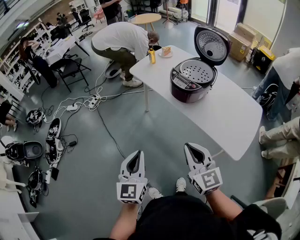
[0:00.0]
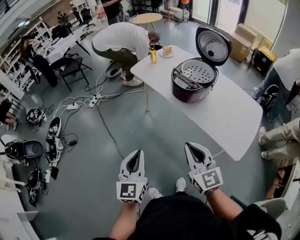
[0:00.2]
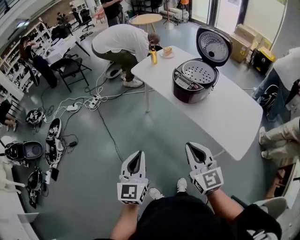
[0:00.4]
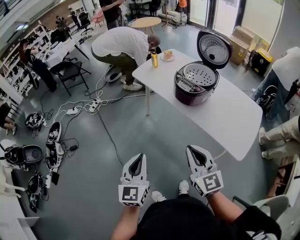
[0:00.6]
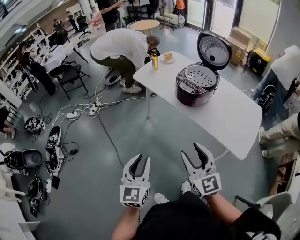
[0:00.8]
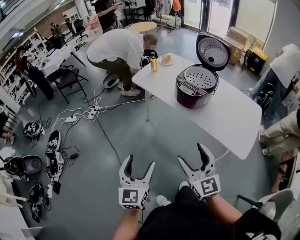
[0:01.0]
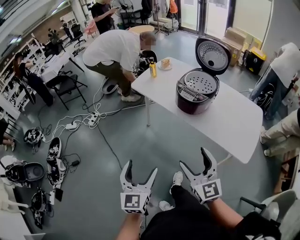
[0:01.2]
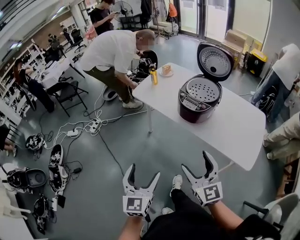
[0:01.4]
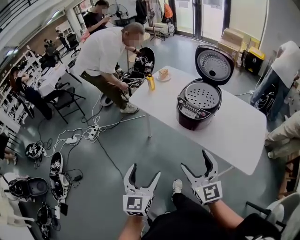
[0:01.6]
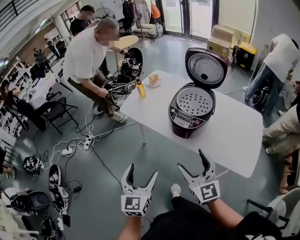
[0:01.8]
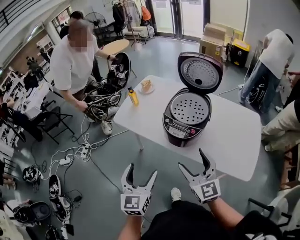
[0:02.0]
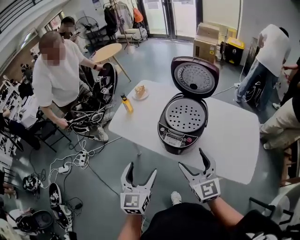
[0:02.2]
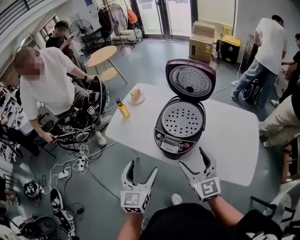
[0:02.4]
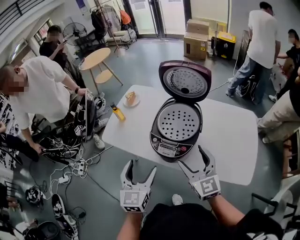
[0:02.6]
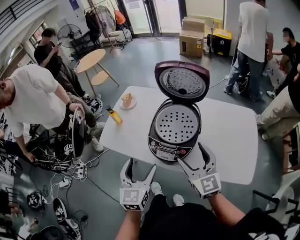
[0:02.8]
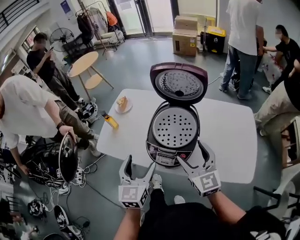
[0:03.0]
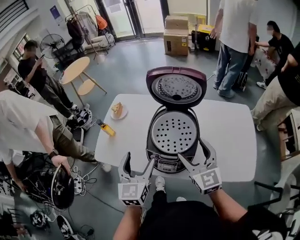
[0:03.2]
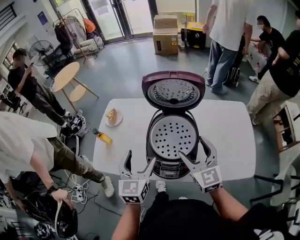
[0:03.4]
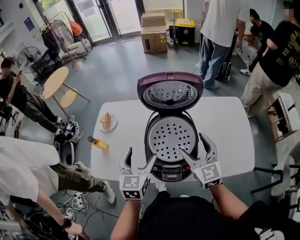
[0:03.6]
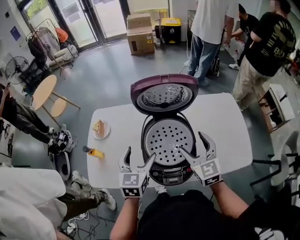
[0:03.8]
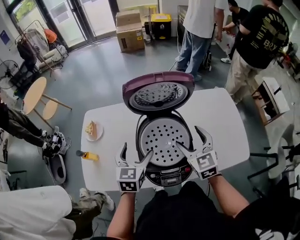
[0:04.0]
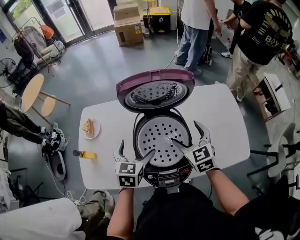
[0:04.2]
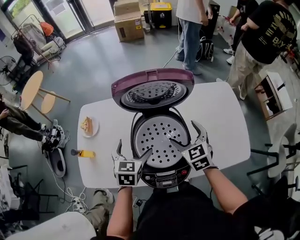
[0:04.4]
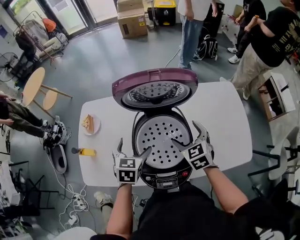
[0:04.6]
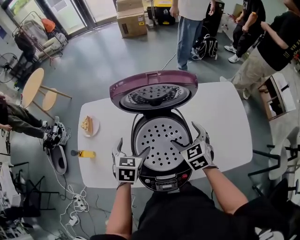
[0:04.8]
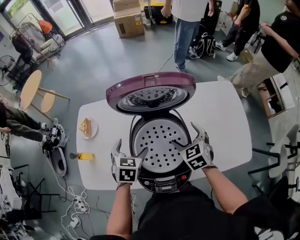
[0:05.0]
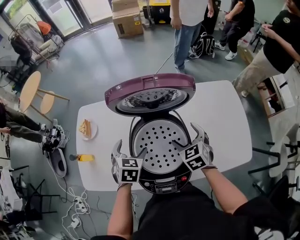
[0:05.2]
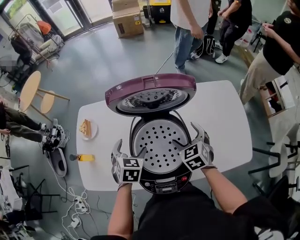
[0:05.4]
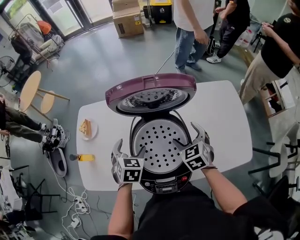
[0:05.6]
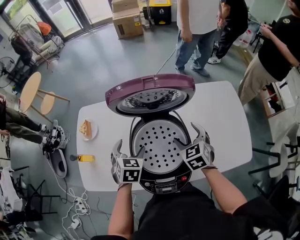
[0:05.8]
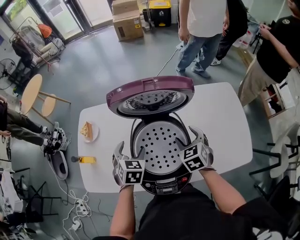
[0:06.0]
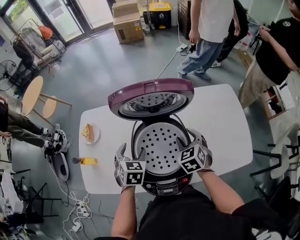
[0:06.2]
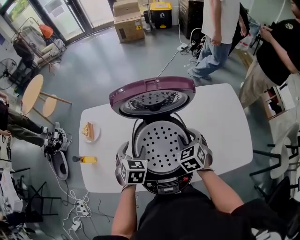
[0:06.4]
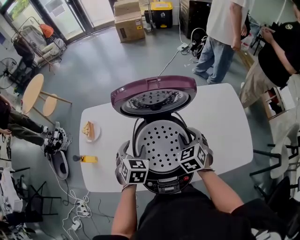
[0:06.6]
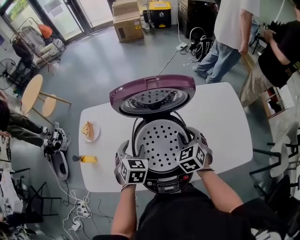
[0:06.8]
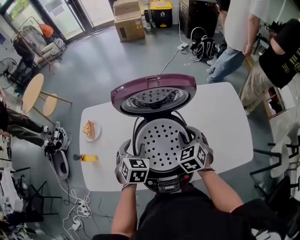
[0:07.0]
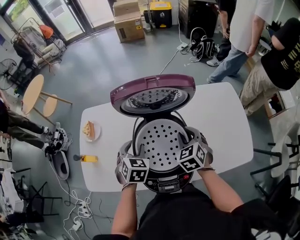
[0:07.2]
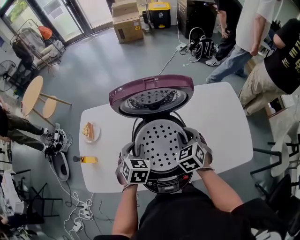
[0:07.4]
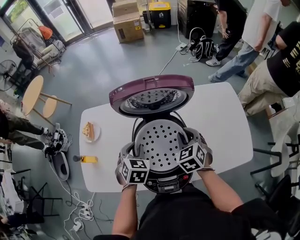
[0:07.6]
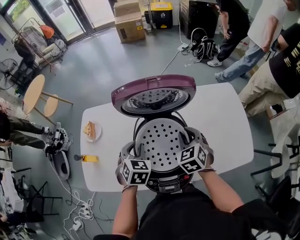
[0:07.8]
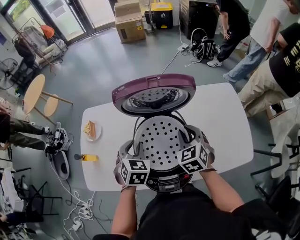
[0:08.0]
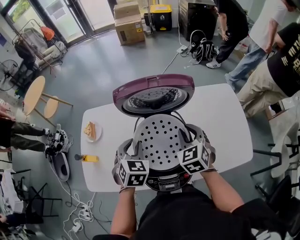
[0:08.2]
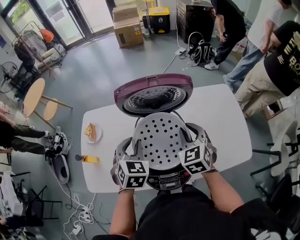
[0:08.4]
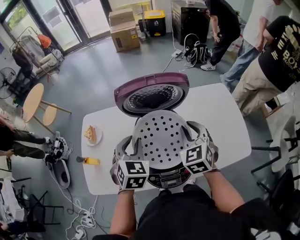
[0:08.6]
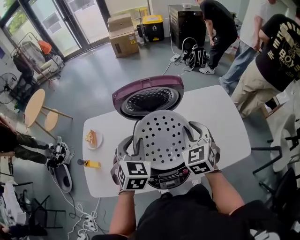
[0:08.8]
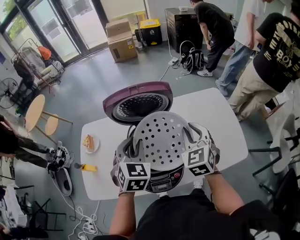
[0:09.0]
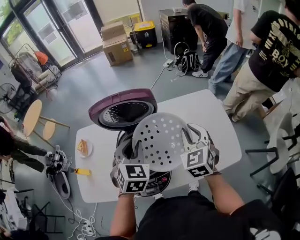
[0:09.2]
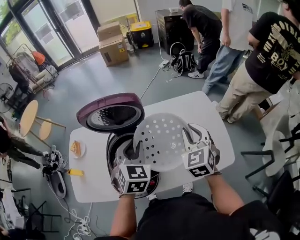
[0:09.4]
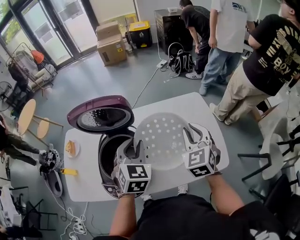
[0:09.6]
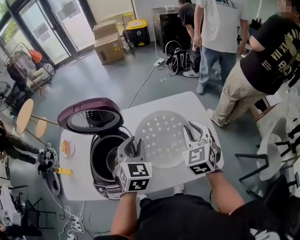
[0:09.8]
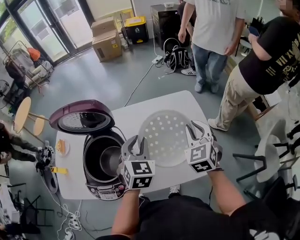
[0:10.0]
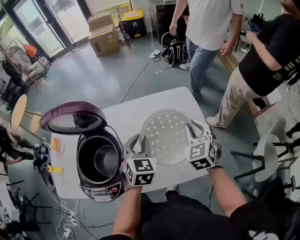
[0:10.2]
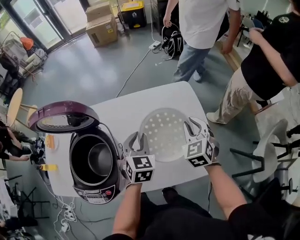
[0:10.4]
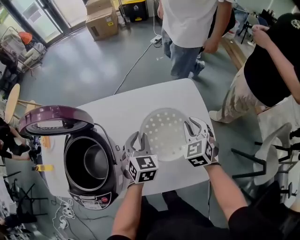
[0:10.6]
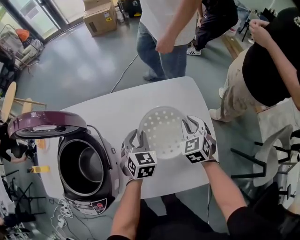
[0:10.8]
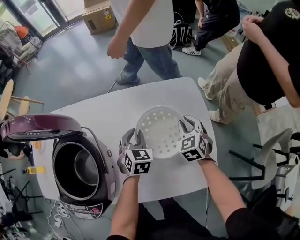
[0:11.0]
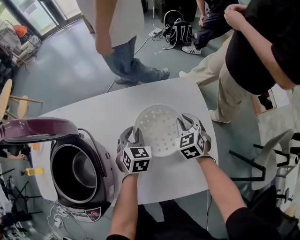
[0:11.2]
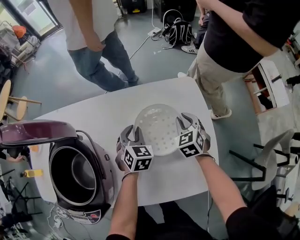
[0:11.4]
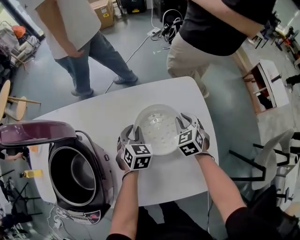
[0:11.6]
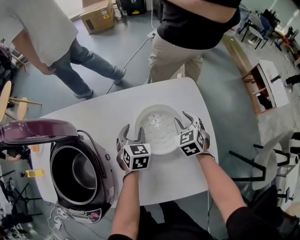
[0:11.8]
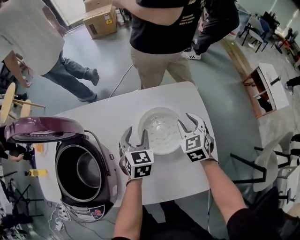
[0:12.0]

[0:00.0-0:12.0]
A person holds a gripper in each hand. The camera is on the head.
0:00.0 to 0:01.6: The two grippers go approximately 15 cm forward. The right gripper opens up, while the left gripper opens.
0:01.6 to 0:03.0: The grippers both shift forward by roughly 30 cm.
0:03.0 to 0:04.4: The right gripper changes place by approximately 20 cm, and rotates some 30 degrees. Meanwhile the left gripper changes place by some 25 cm, and turns by about 30 degrees.
0:04.4 to 0:06.0: The grippers make only small movements.
0:06.0 to 0:07.6: The right gripper closes, while the left gripper closes its fingers.
0:07.6 to 0:09.0: The two grippers go some 15 cm upward and to the right.
0:09.0 to 0:10.4: The grippers both shift to the right and downward by about 35 cm.
0:10.4 to 0:12.0: The two grippers go roughly 15 cm downward and forward.

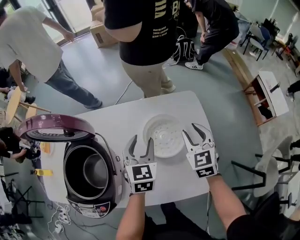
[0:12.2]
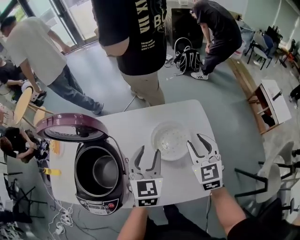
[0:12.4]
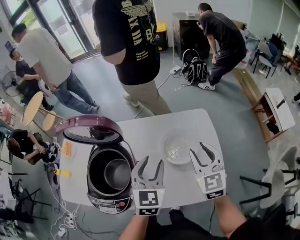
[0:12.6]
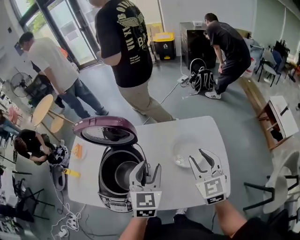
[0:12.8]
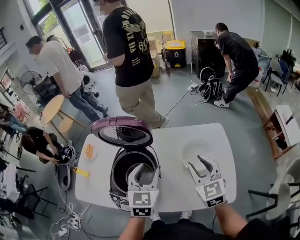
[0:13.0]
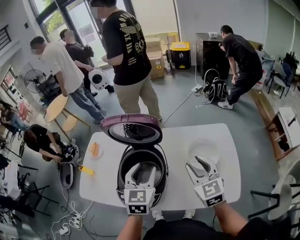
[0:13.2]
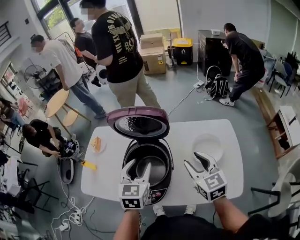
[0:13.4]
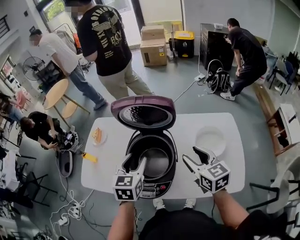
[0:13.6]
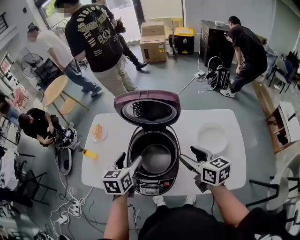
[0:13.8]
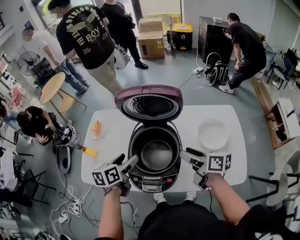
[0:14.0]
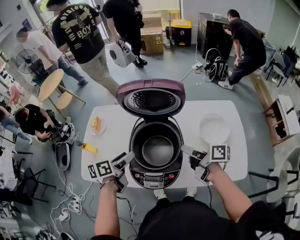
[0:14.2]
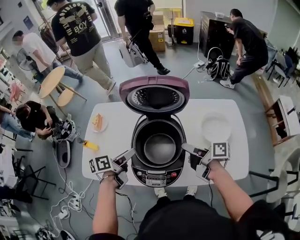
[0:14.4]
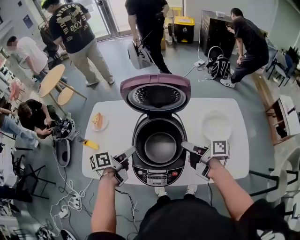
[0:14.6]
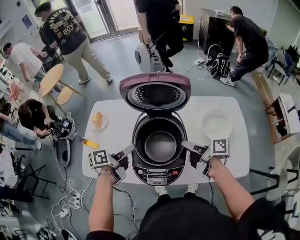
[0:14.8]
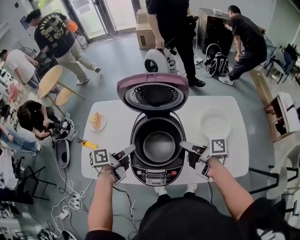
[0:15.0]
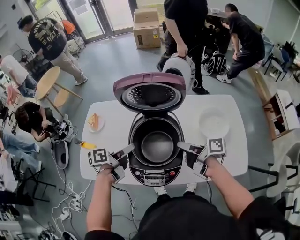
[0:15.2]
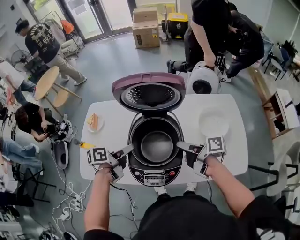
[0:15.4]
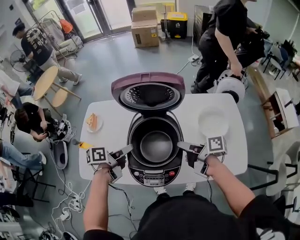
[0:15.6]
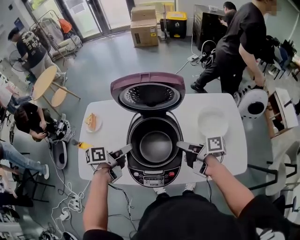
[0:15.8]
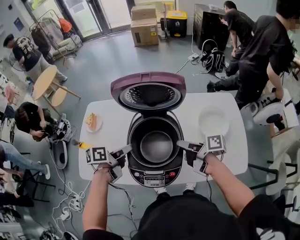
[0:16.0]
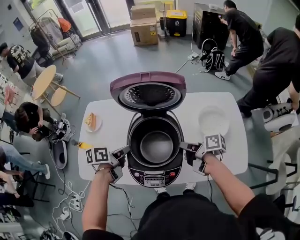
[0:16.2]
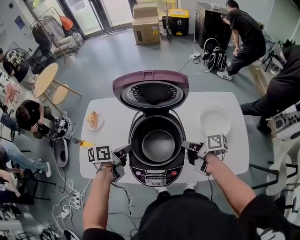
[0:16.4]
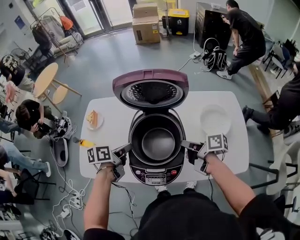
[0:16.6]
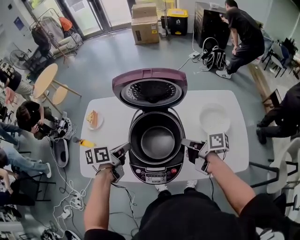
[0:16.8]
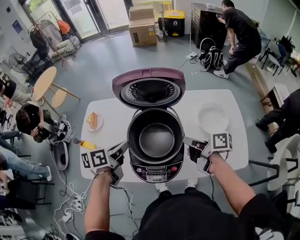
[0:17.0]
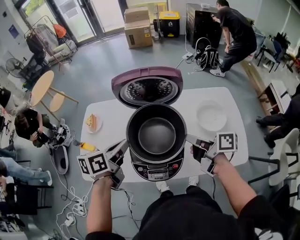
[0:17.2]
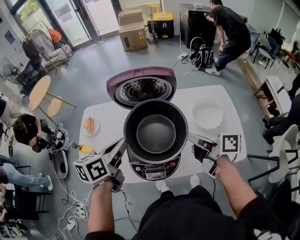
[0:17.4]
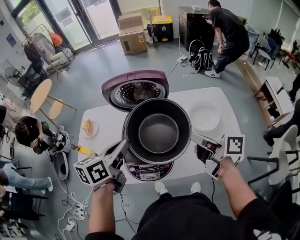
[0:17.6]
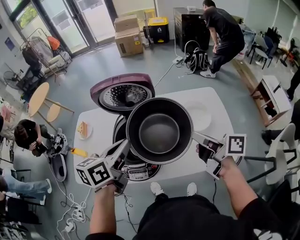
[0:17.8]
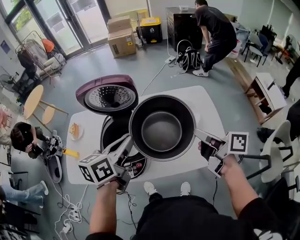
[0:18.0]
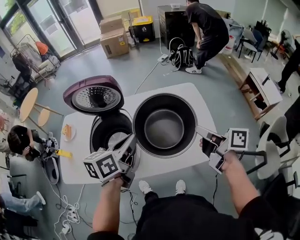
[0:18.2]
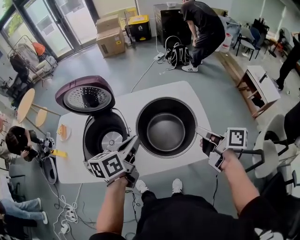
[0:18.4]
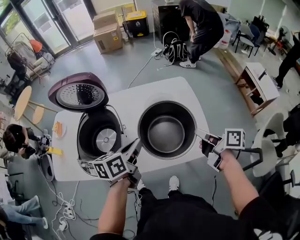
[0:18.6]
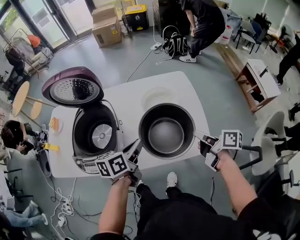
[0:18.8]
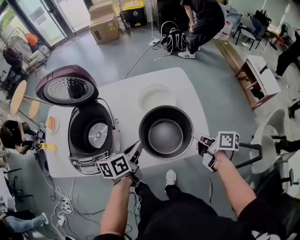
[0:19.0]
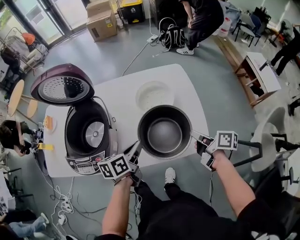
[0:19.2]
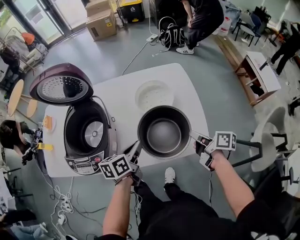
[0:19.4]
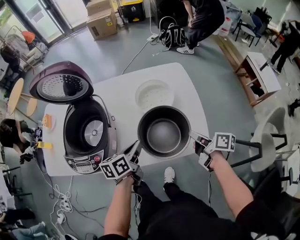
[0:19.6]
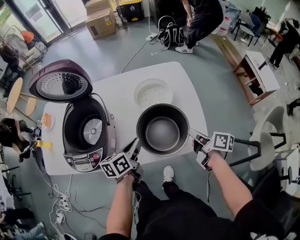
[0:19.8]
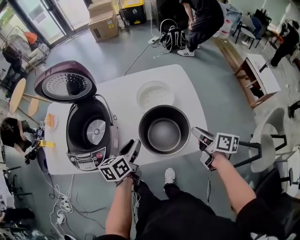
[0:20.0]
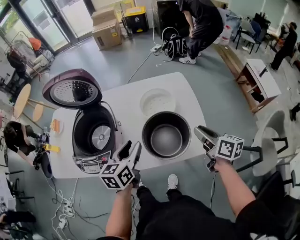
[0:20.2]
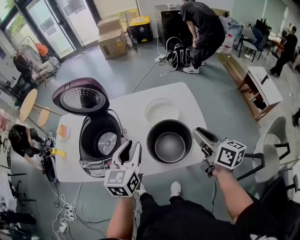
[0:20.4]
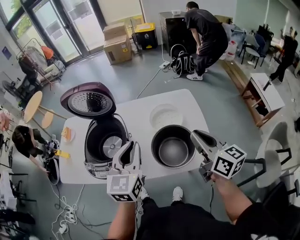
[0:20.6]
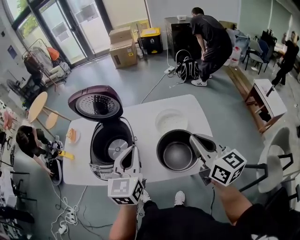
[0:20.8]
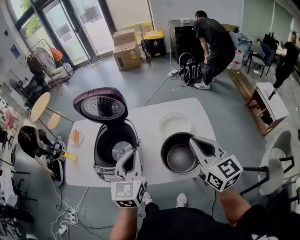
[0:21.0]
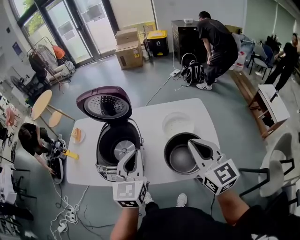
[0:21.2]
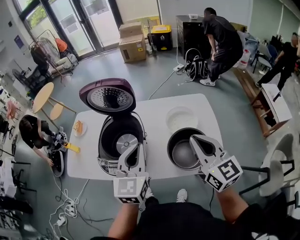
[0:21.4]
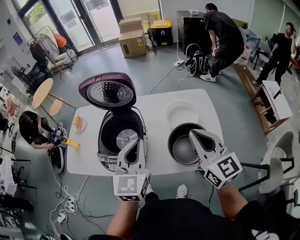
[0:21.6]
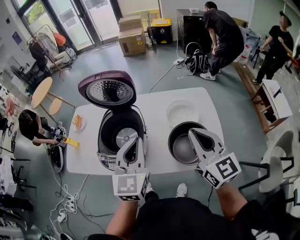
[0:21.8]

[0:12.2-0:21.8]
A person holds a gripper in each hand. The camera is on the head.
0:12.2 to 0:13.8: Both grippers travel together to the left, roughly 35 cm. The right gripper swivels about 40 degrees; the left gripper swivels about 20 degrees.
0:13.8 to 0:15.4: Both grippers travel together downward, about 5 cm. The left gripper changes its angle by some 50 degrees; the right gripper rotates around the line of its fingers by approximately 50 degrees, clockwise from behind.
0:15.4 to 0:17.0: The left gripper ends up approximately 5 cm from where it was; the right gripper closes its fingers.
0:17.0 to 0:18.6: Both grippers move to the right, some 35 cm.
0:18.6 to 0:20.2: The right gripper reaches some 15 cm downward, then returns, and turns by about 20 degrees; the left gripper goes downward and returns, roughly 15 cm each way.
0:20.2 to 0:21.8: Both grippers travel together upward and to the left, about 20 cm. The left gripper changes its angle by about 30 degrees; the right gripper rotates around the line of its fingers by approximately 40 degrees, counterclockwise from behind.

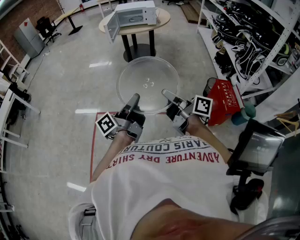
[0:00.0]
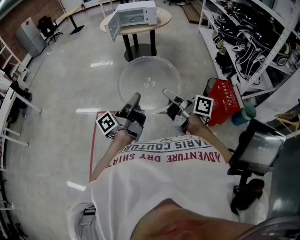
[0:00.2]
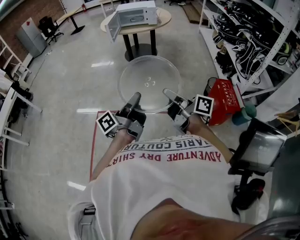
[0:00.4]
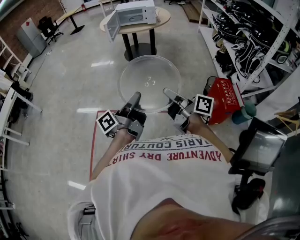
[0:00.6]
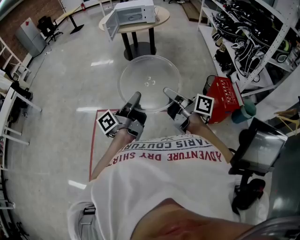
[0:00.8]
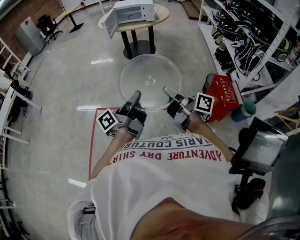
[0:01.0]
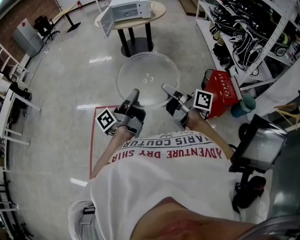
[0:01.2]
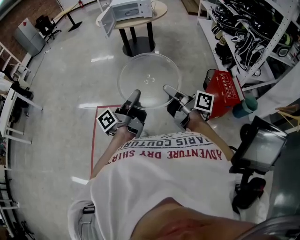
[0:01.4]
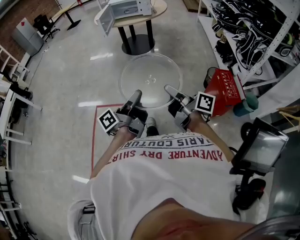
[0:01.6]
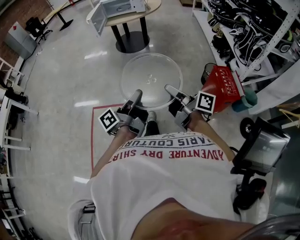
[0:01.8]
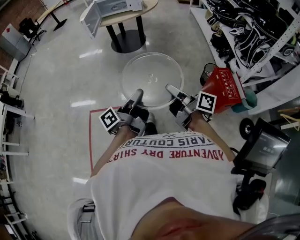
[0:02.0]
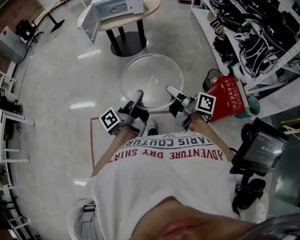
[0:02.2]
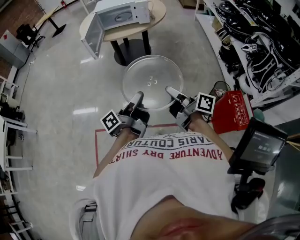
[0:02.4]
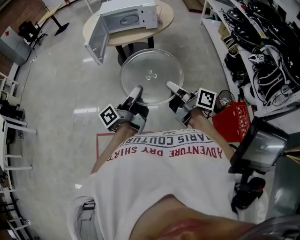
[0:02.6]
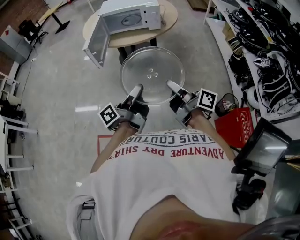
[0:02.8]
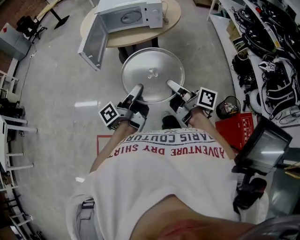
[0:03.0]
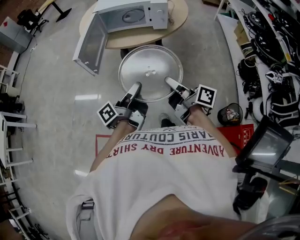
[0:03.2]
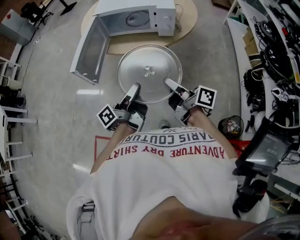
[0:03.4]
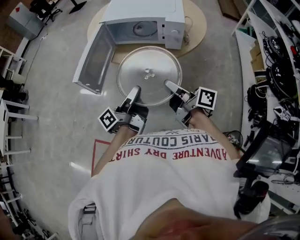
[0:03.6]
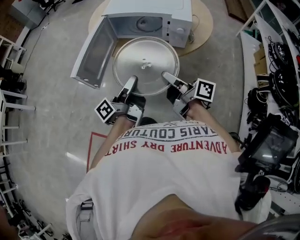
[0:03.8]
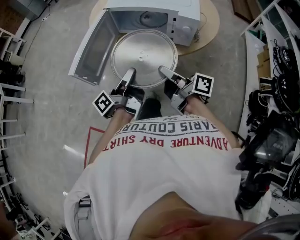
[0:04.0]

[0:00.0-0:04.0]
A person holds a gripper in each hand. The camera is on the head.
0:00.0 to 0:01.4: The right gripper changes place by some 5 cm.
0:01.4 to 0:02.6: The right gripper shifts by roughly 50 cm.
0:02.6 to 0:04.0: The right gripper ends up some 50 cm from where it was, and swivels about 20 degrees.
